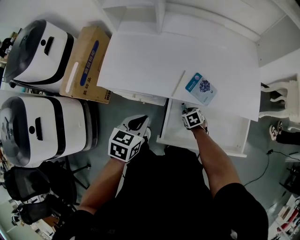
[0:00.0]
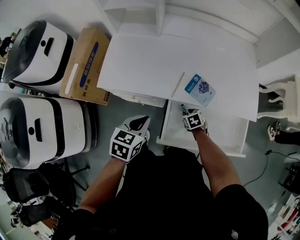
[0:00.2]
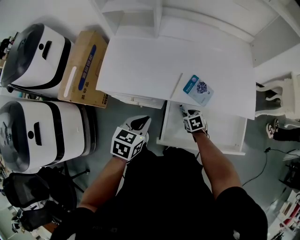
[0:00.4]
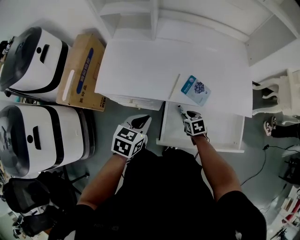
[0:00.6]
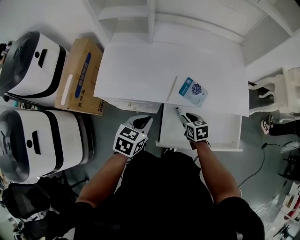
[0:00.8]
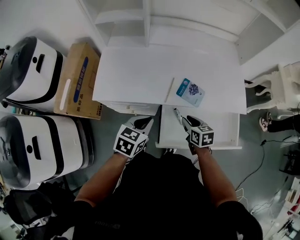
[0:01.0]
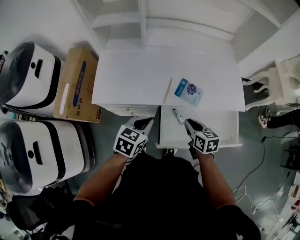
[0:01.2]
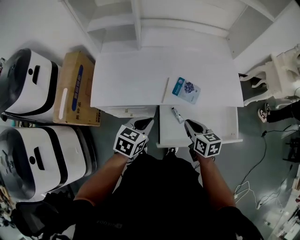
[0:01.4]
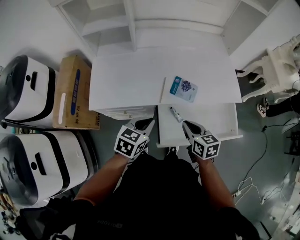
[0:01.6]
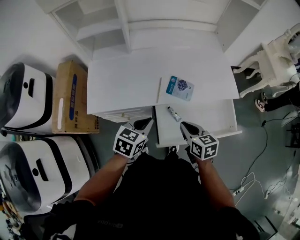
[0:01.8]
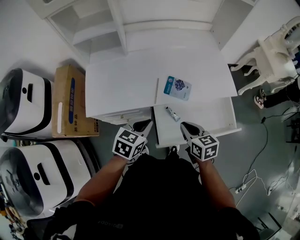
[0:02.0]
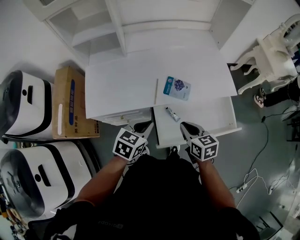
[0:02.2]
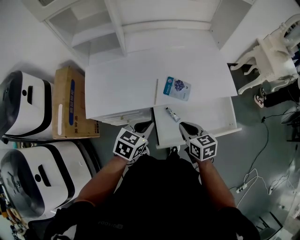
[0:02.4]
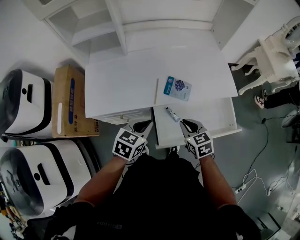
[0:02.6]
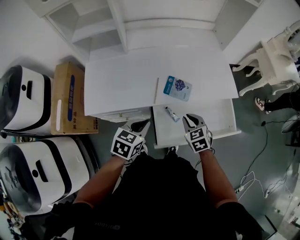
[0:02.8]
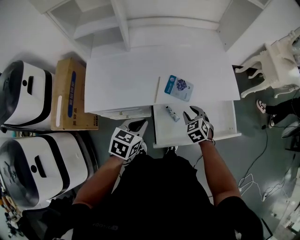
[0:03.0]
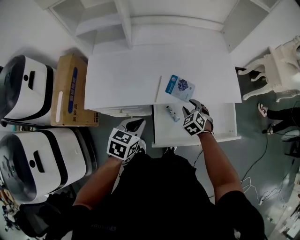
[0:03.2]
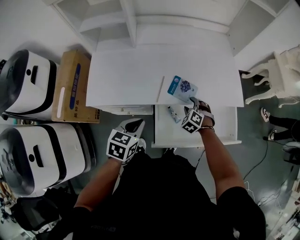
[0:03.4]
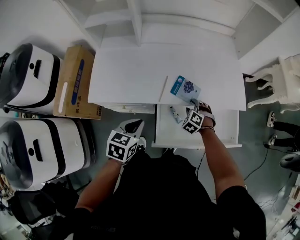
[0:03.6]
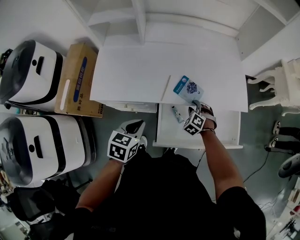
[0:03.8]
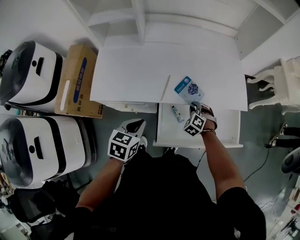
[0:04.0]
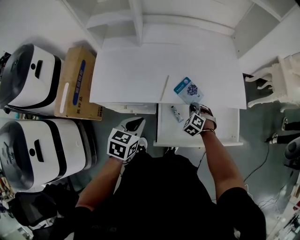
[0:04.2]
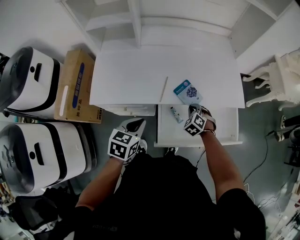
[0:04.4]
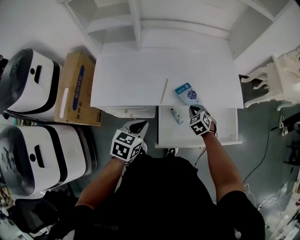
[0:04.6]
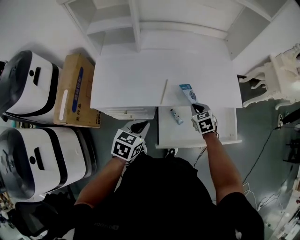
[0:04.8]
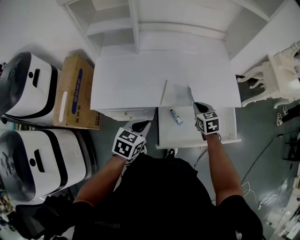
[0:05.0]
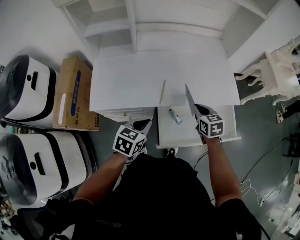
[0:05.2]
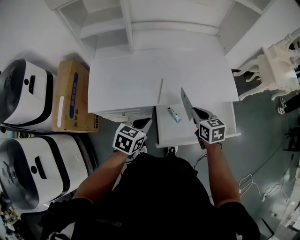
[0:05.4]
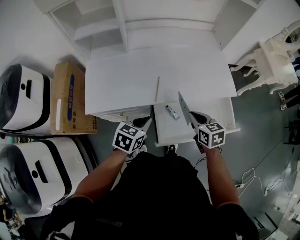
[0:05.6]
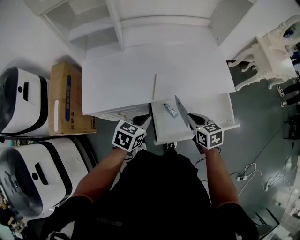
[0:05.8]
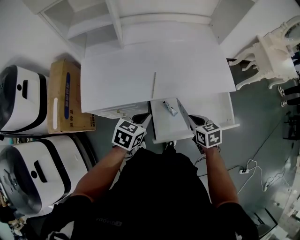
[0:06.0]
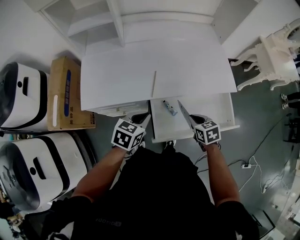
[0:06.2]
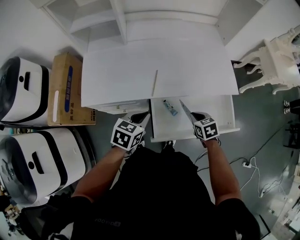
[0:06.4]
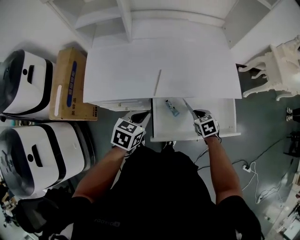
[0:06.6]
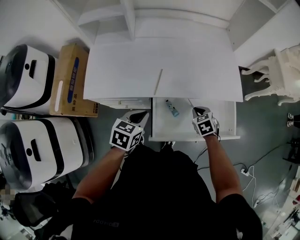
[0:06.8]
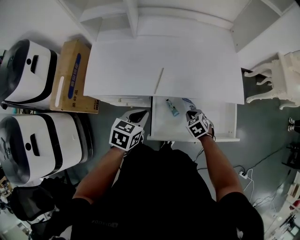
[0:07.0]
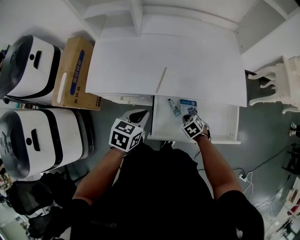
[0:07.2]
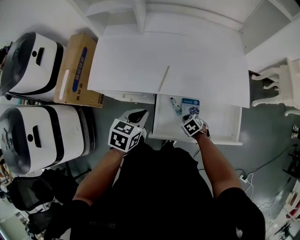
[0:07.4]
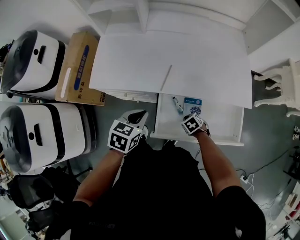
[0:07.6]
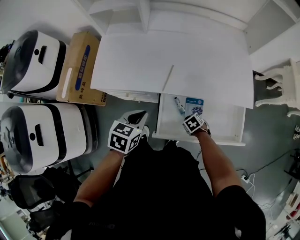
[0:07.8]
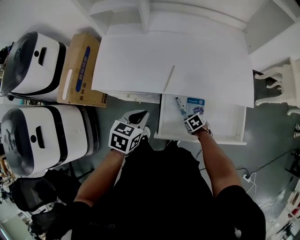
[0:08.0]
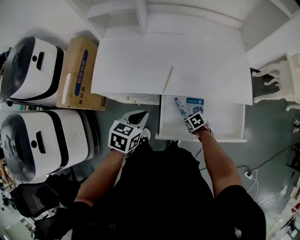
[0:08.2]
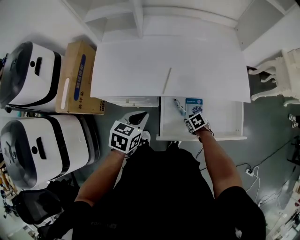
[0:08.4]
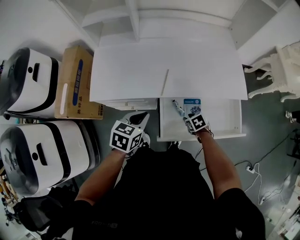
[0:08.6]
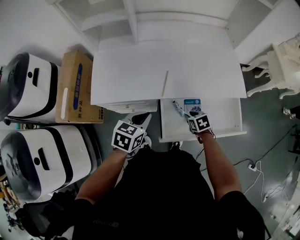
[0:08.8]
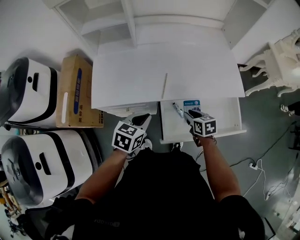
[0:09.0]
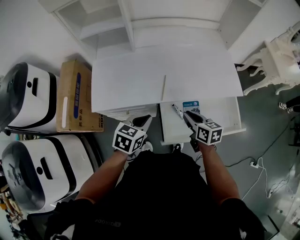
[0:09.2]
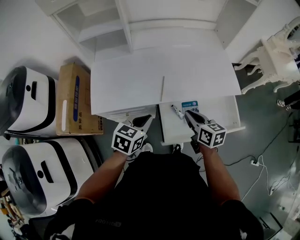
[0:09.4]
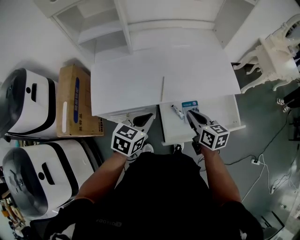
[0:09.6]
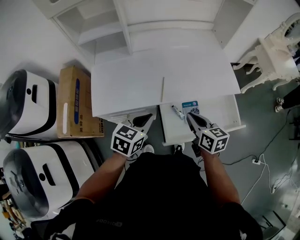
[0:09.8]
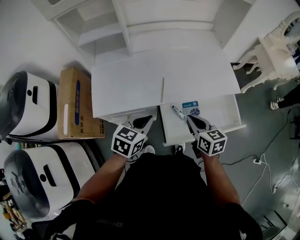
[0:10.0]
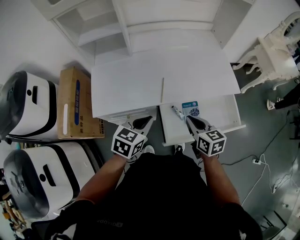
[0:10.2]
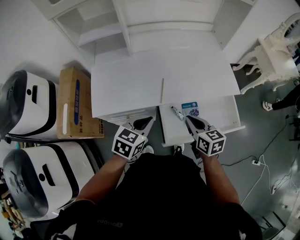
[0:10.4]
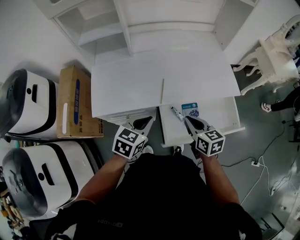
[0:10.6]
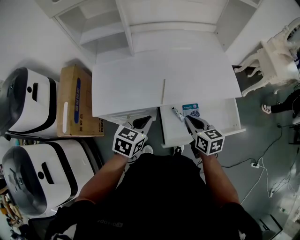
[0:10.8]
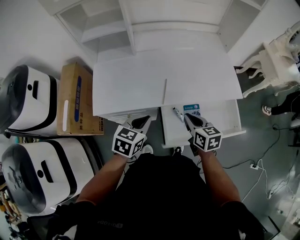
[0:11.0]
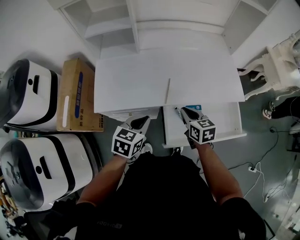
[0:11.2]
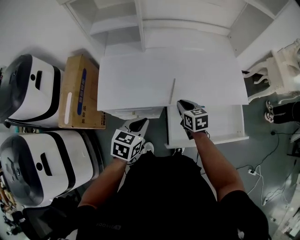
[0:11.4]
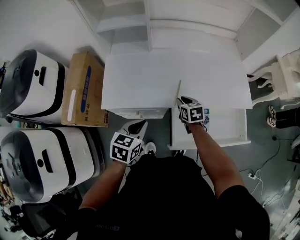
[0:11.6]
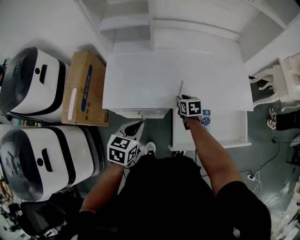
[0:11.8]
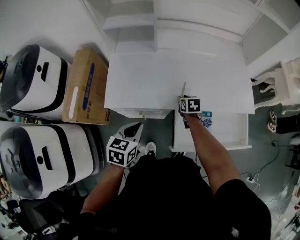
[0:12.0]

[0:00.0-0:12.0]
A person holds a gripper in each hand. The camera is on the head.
0:00.0 to 0:01.6: The right gripper goes some 25 cm upward, and points its fingers about 30 degrees further upward; the left gripper changes its angle by approximately 20 degrees.
0:01.6 to 0:03.0: The right gripper shifts some 10 cm downward and forward, swivels approximately 40 degrees, and opens up.
0:03.0 to 0:04.4: The right gripper goes roughly 5 cm downward, swivels about 20 degrees, and closes its fingers.
0:04.4 to 0:06.0: The right gripper moves upward and backward, approximately 15 cm, and rotates around the line of its fingers by roughly 50 degrees, clockwise from behind.
0:06.0 to 0:07.6: The right gripper heads downward, covering some 20 cm, and changes its angle by about 40 degrees.
0:07.6 to 0:09.0: The right gripper moves upward, roughly 15 cm, rotates about 50 degrees, and opens its fingers.
0:09.0 to 0:10.4: The right gripper goes about 15 cm upward, and closes up.
0:10.4 to 0:12.0: The right gripper goes approximately 25 cm forward, downward and to the left, and turns by roughly 20 degrees, while the left gripper goes approximately 10 cm to the left, and turns by approximately 20 degrees.

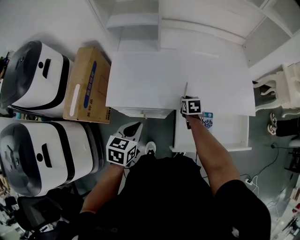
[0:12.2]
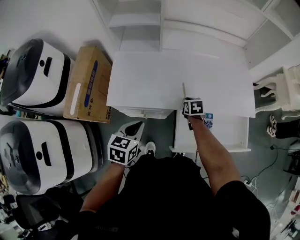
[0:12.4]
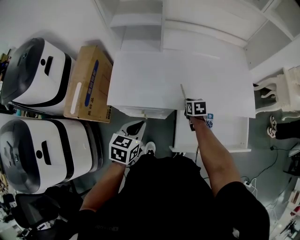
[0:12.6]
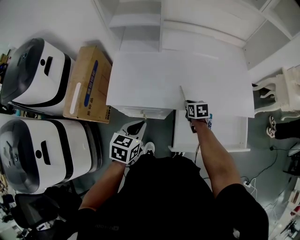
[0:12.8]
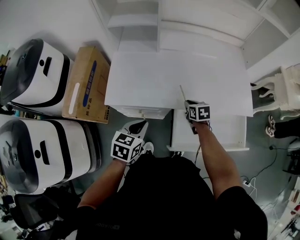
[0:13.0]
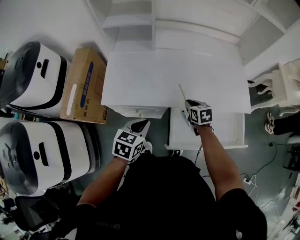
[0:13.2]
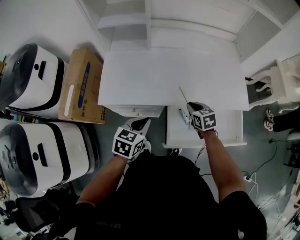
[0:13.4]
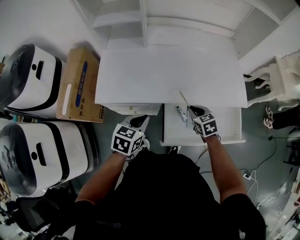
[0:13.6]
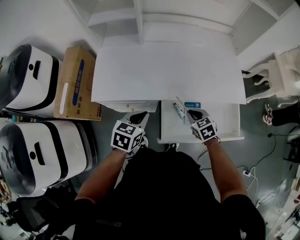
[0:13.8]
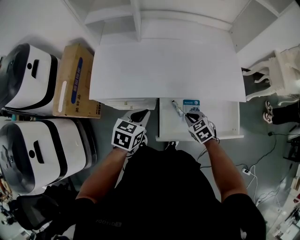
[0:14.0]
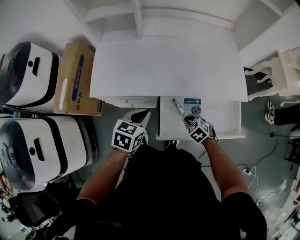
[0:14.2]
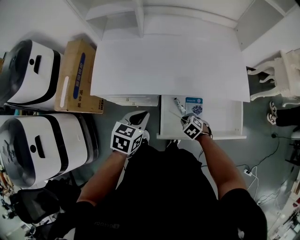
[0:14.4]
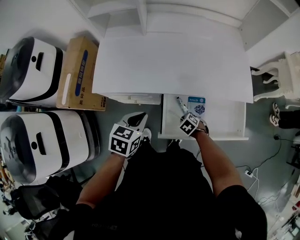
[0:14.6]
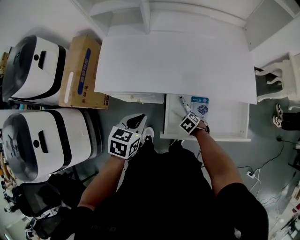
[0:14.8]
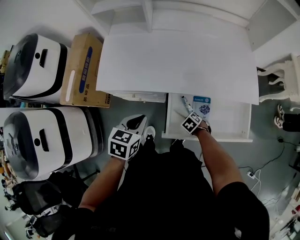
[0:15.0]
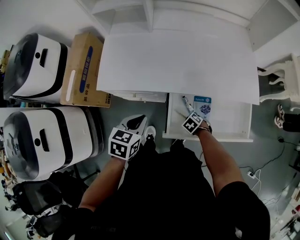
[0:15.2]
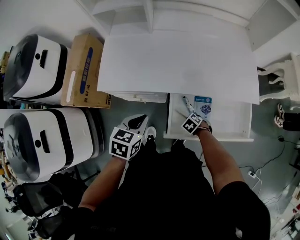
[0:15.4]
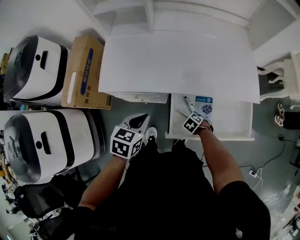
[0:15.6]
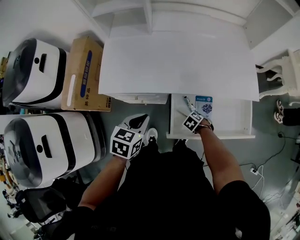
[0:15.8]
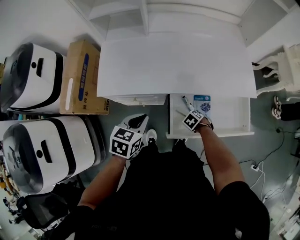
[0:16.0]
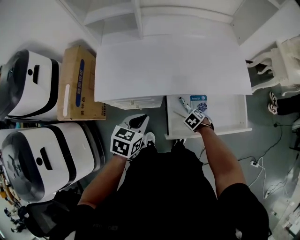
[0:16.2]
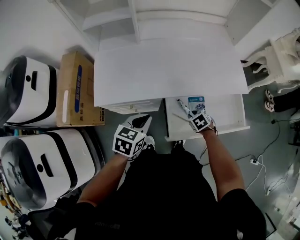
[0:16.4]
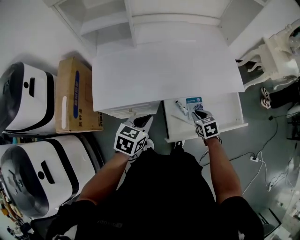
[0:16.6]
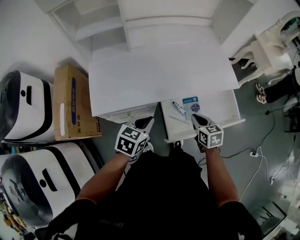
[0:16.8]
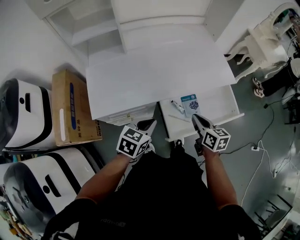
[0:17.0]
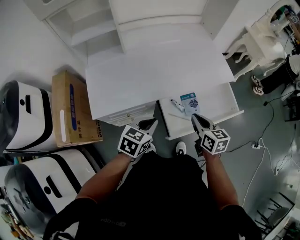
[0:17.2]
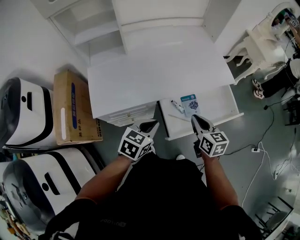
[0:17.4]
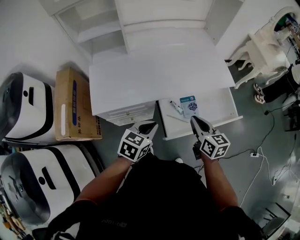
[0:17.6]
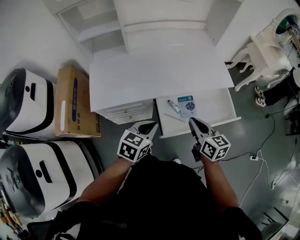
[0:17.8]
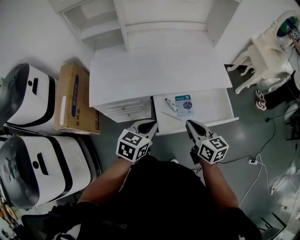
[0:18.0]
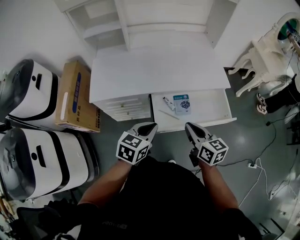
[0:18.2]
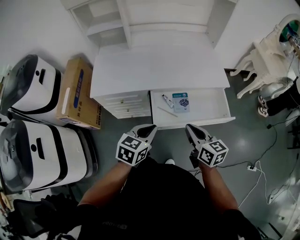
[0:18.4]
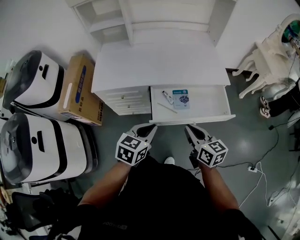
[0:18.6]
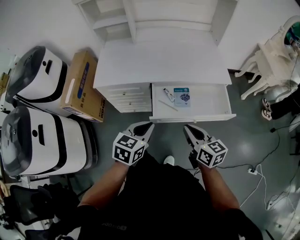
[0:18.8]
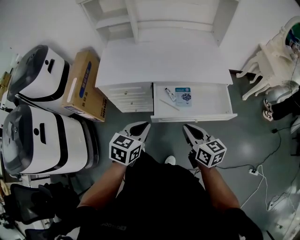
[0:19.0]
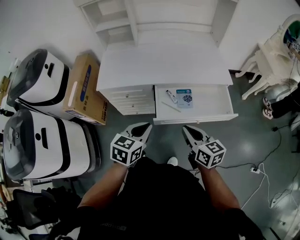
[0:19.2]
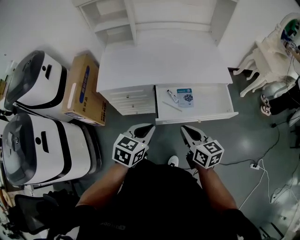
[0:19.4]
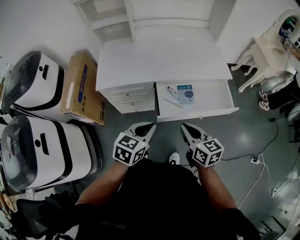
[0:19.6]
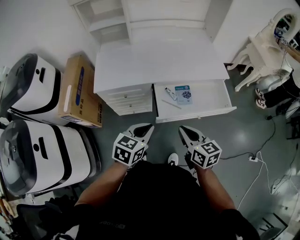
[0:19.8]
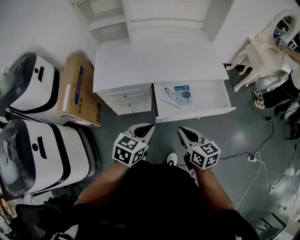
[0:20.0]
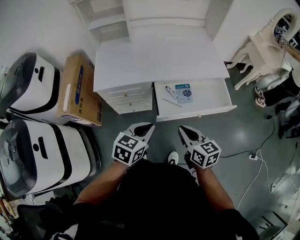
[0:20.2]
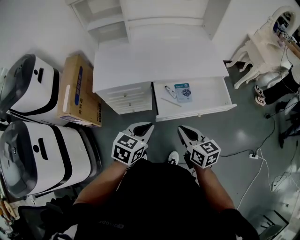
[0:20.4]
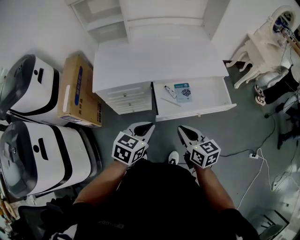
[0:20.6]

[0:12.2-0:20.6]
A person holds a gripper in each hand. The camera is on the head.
0:12.2 to 0:13.6: The left gripper is displaced to the right by some 10 cm, while the right gripper moves backward, to the right and upward, about 15 cm.
0:13.6 to 0:15.0: The right gripper travels downward by about 20 cm, and points its fingers about 30 degrees further downward.
0:15.0 to 0:16.4: The right gripper goes some 10 cm upward, and rotates about 30 degrees.
0:16.4 to 0:17.8: The right gripper heads upward, covering about 25 cm, and tilts its fingers approximately 50 degrees upward. Meanwhile the left gripper is displaced to the right by about 5 cm.
0:17.8 to 0:19.2: The two grippers go approximately 15 cm backward.
0:19.2 to 0:20.6: The right gripper moves to the left, some 5 cm.

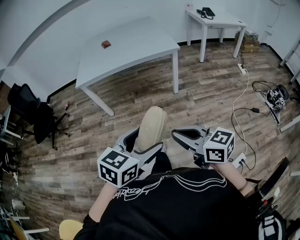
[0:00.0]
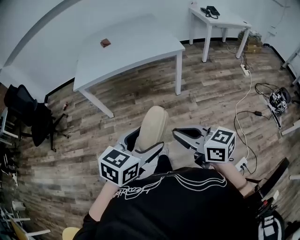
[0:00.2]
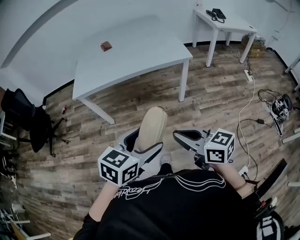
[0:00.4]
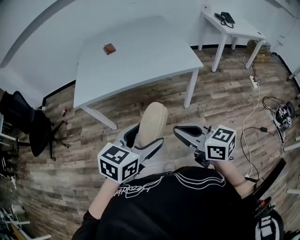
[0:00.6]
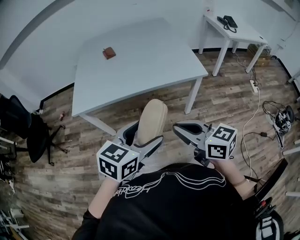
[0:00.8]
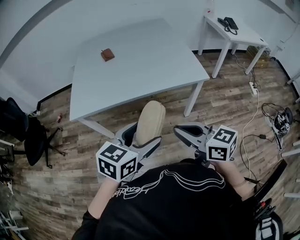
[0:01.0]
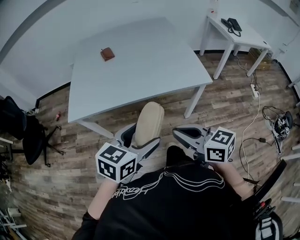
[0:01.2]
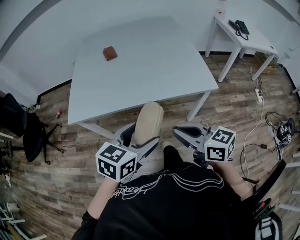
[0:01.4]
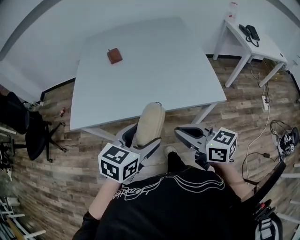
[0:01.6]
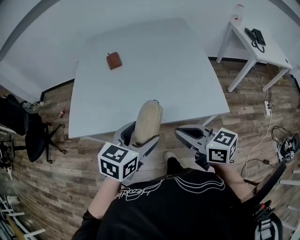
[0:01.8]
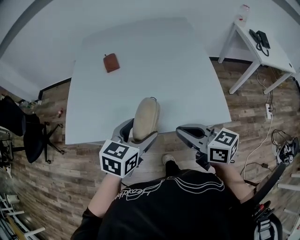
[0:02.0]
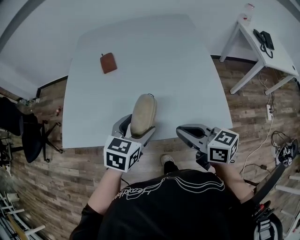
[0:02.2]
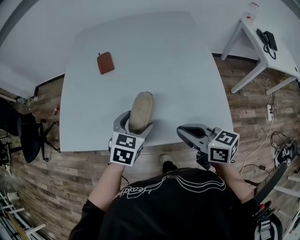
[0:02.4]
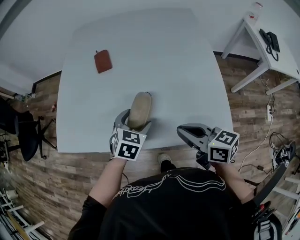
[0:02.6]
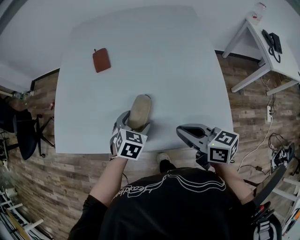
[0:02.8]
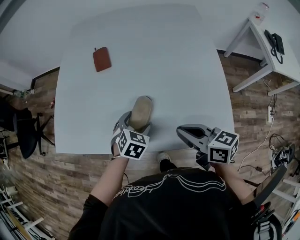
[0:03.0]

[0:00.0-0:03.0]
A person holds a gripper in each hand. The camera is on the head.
0:00.0 to 0:01.6: The pair of grippers is taken forward, some 60 cm.
0:01.6 to 0:03.0: The left gripper heads forward and downward, covering some 35 cm, and rotates about 30 degrees, while the right gripper heads forward and to the right, covering some 25 cm.
